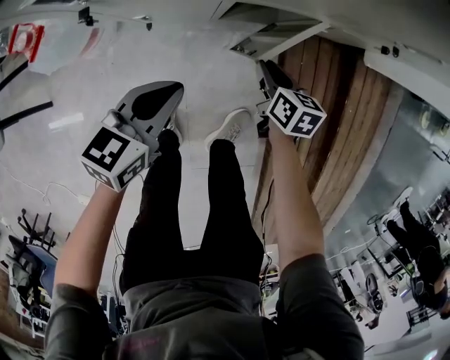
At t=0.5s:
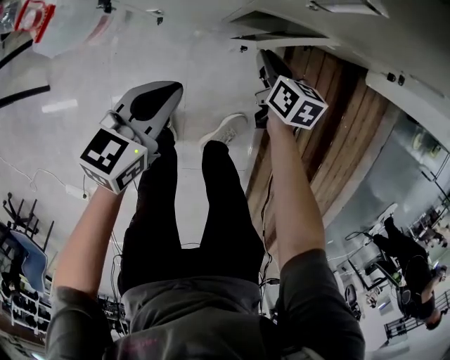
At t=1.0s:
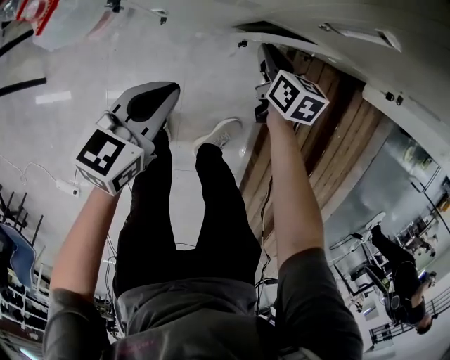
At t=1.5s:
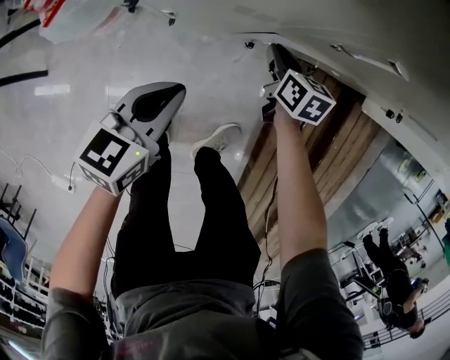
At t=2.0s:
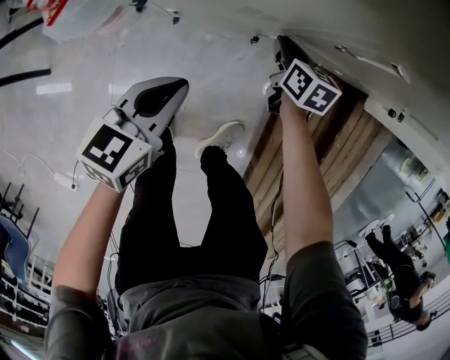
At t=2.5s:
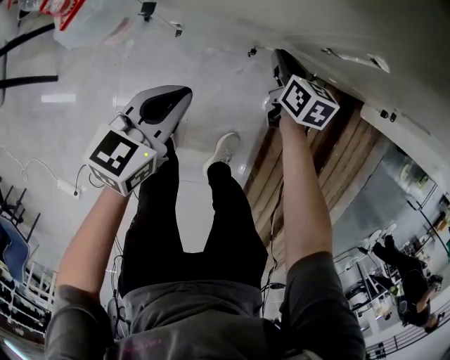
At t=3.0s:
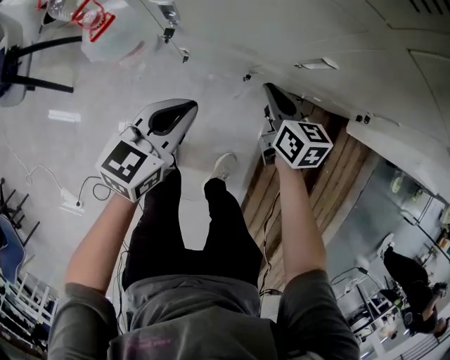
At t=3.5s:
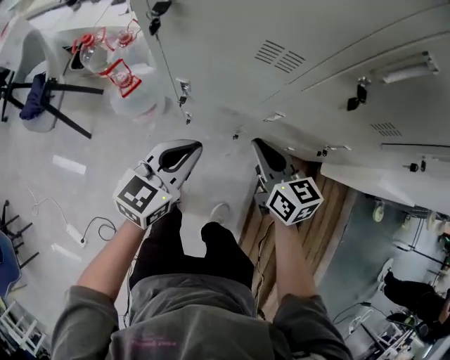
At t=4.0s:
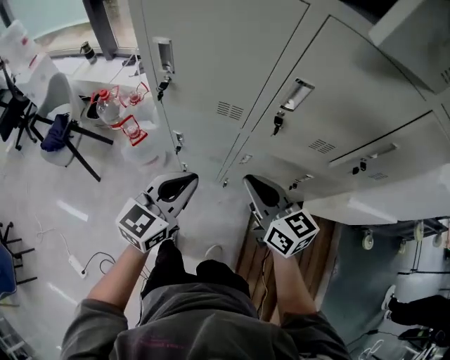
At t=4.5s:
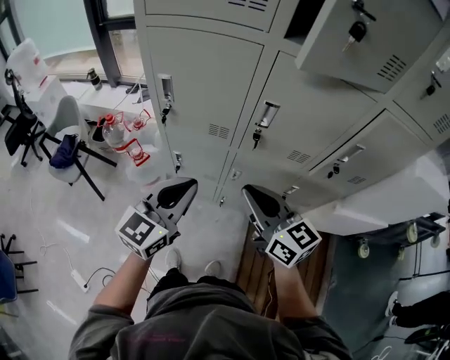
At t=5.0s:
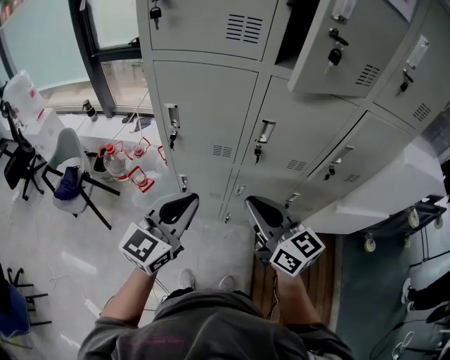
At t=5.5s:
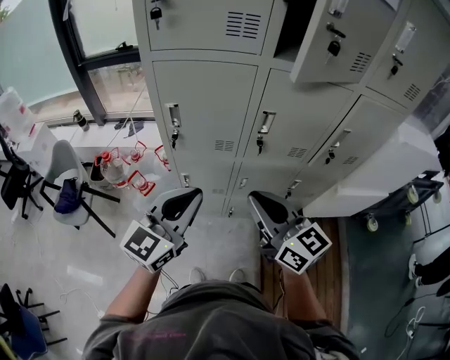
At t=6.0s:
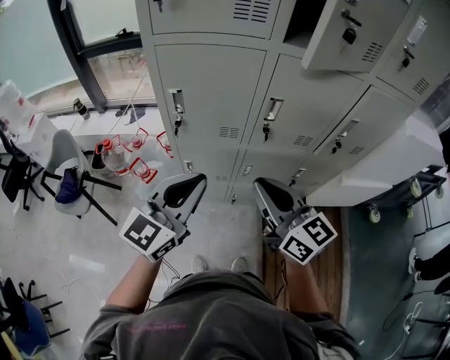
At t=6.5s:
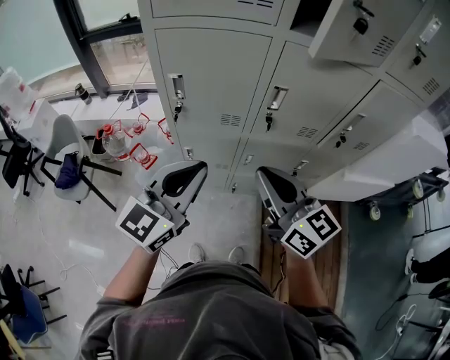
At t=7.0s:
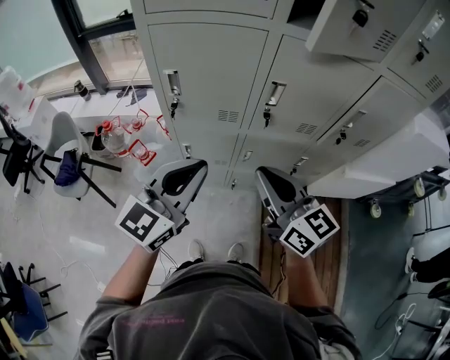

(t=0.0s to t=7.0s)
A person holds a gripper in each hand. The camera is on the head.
t=0.0s - t=2.0s: The left gripper moves to the left, some 5 cm; the right gripper moves forward and to the left, approximately 15 cm.
t=2.0s - t=3.5s: The two grippers go about 35 cm upward. The right gripper swivels about 30 degrees, while the left gripper turns by about 20 degrees.
t=3.5s - t=5.0s: Both grippers move upward, approximately 35 cm. The right gripper changes its angle by some 20 degrees. Meanwhile the left gripper changes its angle by roughly 20 degrees.
t=5.0s - t=7.0s: The grippers make only small movements.

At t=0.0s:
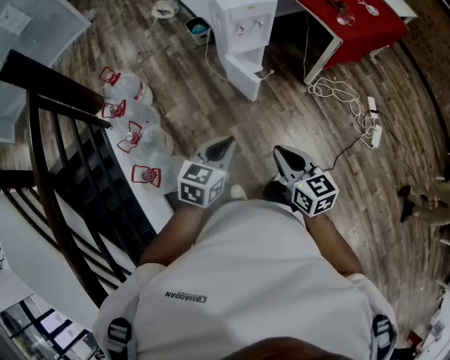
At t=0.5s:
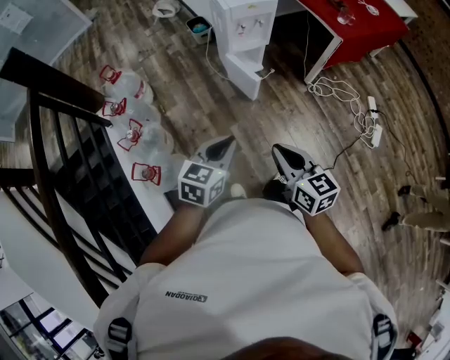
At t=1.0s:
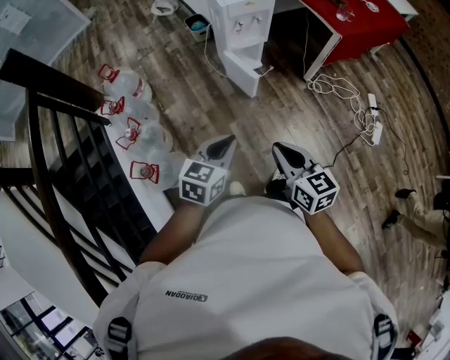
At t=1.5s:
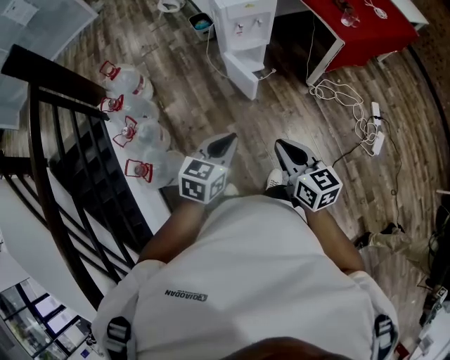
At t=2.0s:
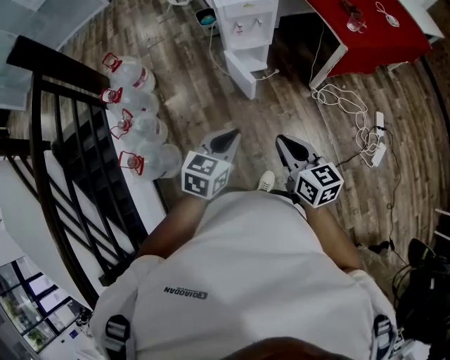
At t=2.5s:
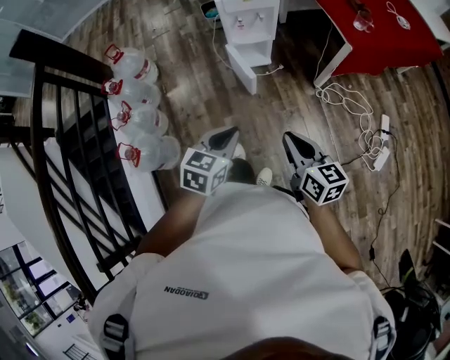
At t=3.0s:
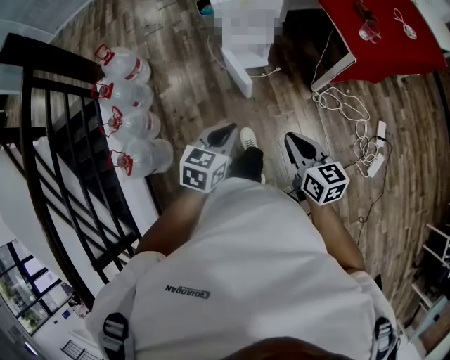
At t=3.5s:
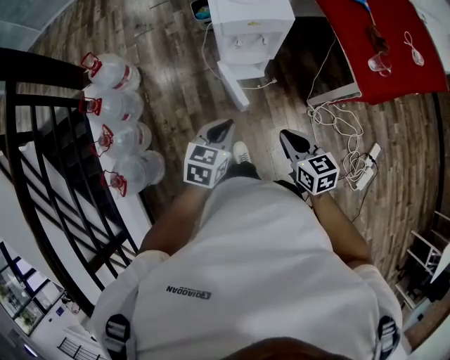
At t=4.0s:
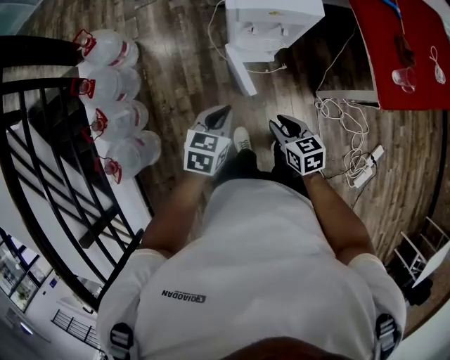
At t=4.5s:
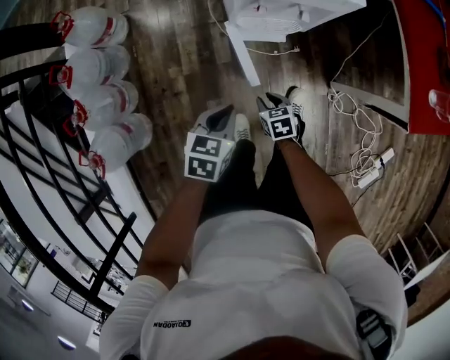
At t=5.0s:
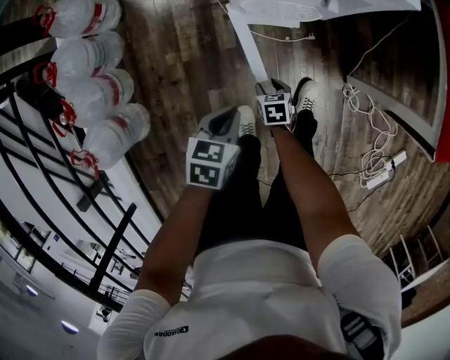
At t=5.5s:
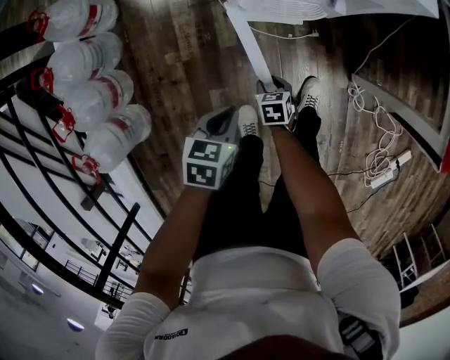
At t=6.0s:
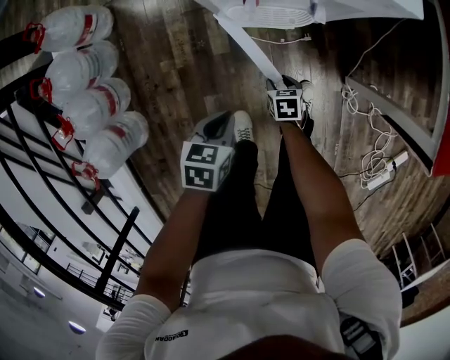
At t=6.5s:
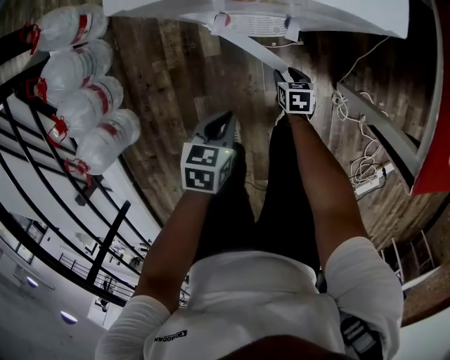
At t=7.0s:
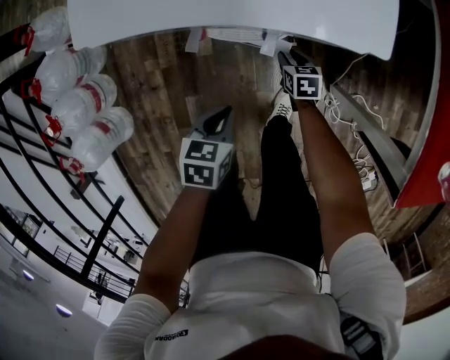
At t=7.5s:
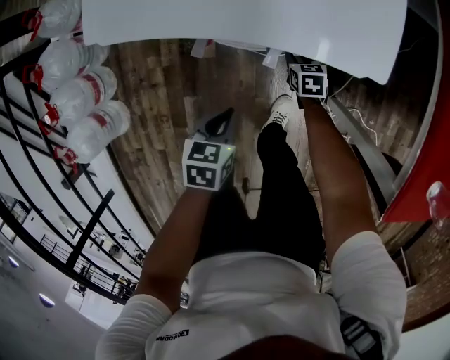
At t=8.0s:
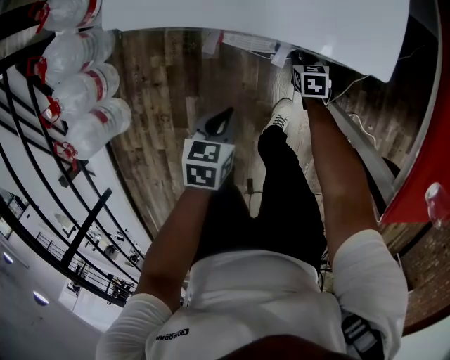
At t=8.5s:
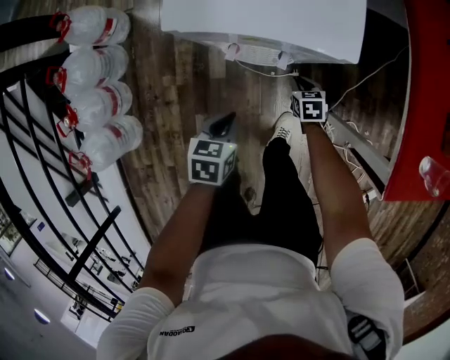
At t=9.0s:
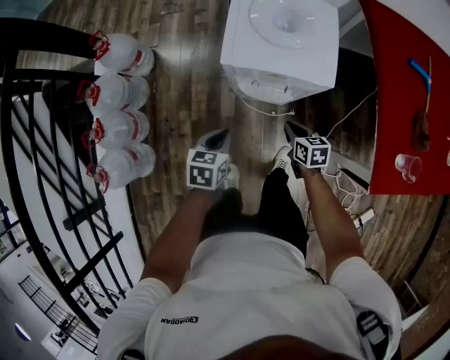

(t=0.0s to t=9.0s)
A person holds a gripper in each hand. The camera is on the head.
t=0.0s - t=2.0s: The two grippers go approximately 15 cm to the right and forward.
t=2.0s - t=4.5s: The left gripper goes roughly 40 cm forward and downward, and changes its angle by approximately 30 degrees; the right gripper is displaced downward and forward by about 60 cm, and tilts its fingers about 40 degrees downward.
t=4.5s - t=7.0s: The left gripper travels downward, to the right and forward by about 20 cm, while the right gripper moves forward, to the right and downward, about 30 cm.
t=7.0s - t=9.0s: The right gripper heads upward, covering some 25 cm, and closes its fingers. Meanwhile the left gripper moves upward and to the left, approximately 20 cm.

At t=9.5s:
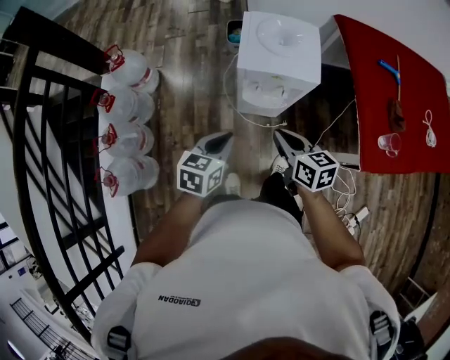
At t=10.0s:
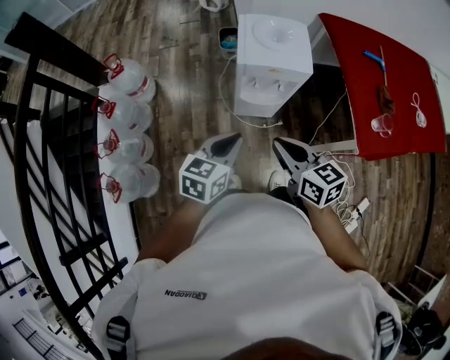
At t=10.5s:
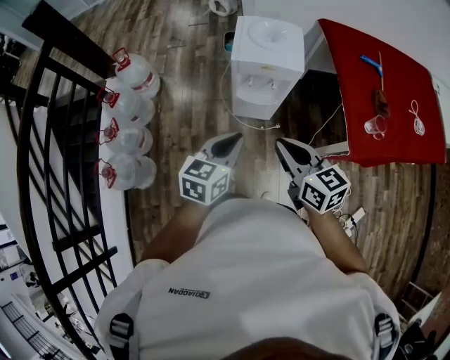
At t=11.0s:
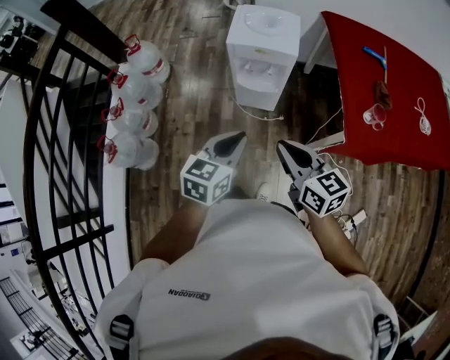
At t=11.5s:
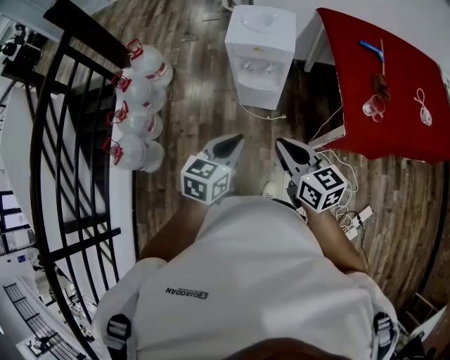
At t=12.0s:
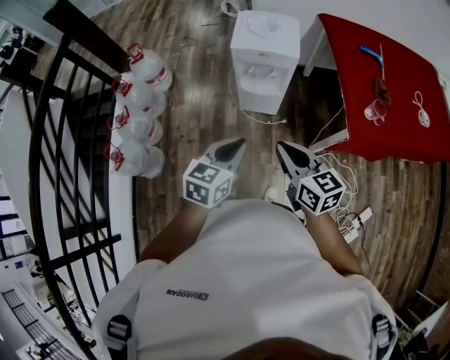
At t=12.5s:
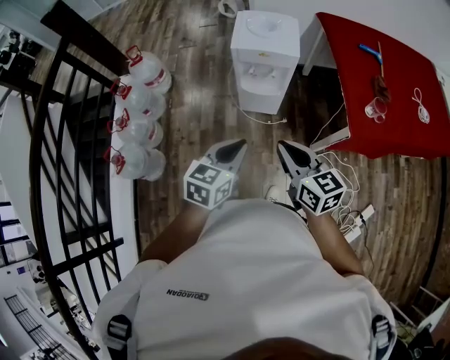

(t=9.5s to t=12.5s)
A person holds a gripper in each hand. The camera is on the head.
t=9.5s - t=11.0s: The right gripper heads backward, upward and to the right, covering about 25 cm. The left gripper shifts about 25 cm backward, to the right and upward.
t=11.0s - t=12.5s: The left gripper shifts by approximately 5 cm.

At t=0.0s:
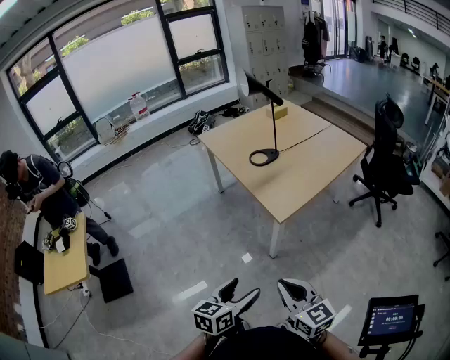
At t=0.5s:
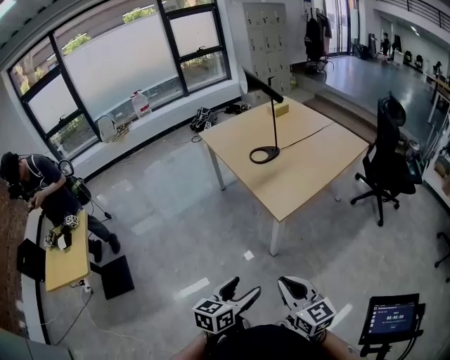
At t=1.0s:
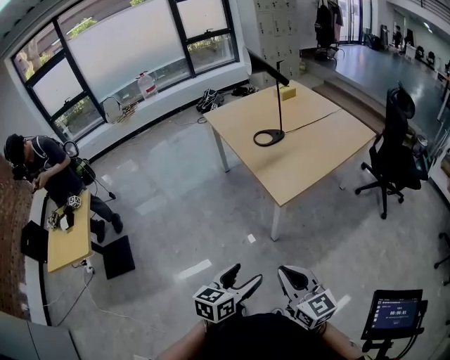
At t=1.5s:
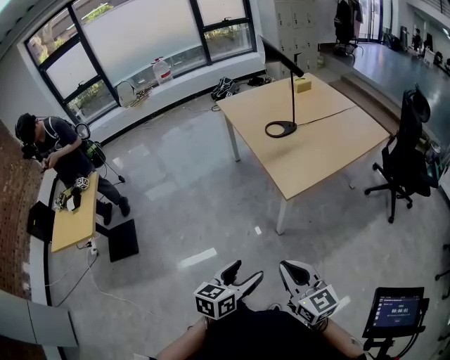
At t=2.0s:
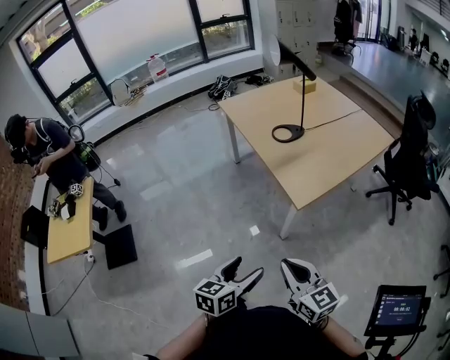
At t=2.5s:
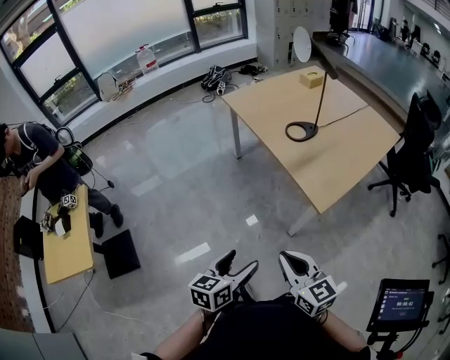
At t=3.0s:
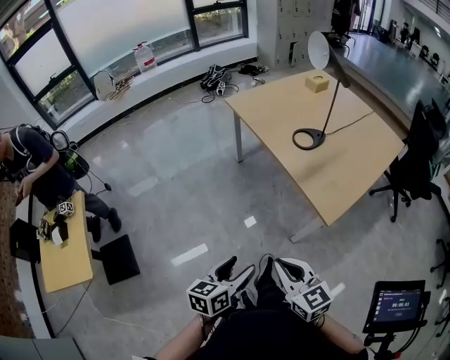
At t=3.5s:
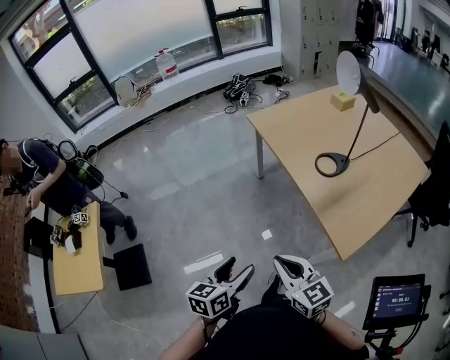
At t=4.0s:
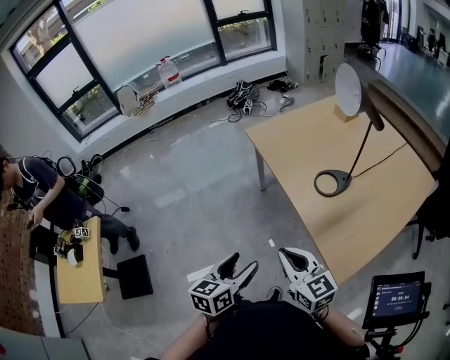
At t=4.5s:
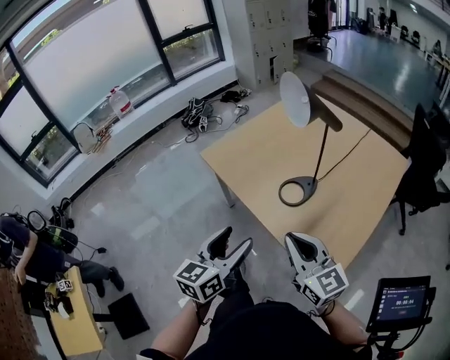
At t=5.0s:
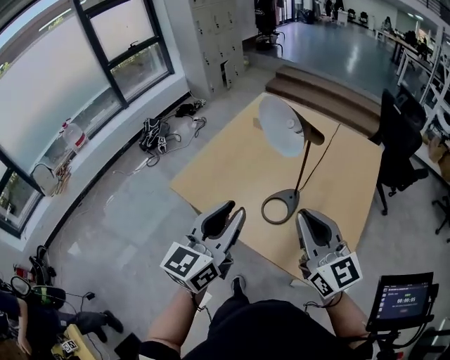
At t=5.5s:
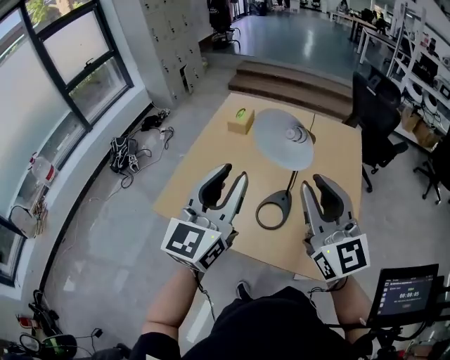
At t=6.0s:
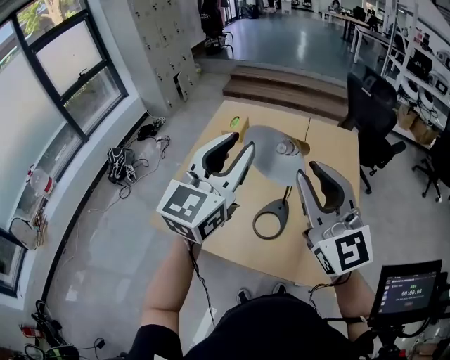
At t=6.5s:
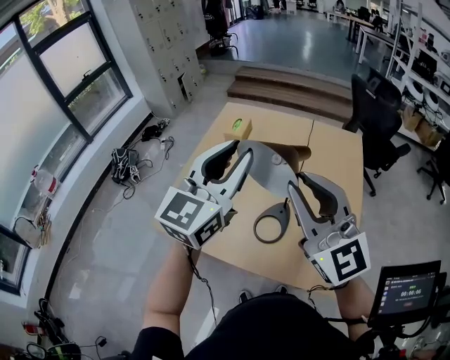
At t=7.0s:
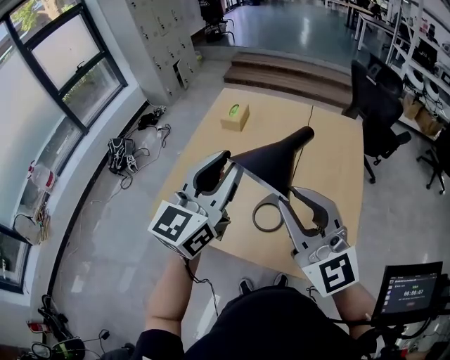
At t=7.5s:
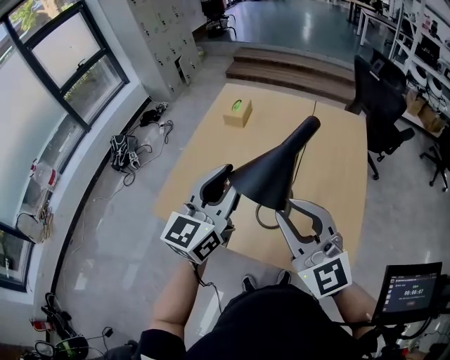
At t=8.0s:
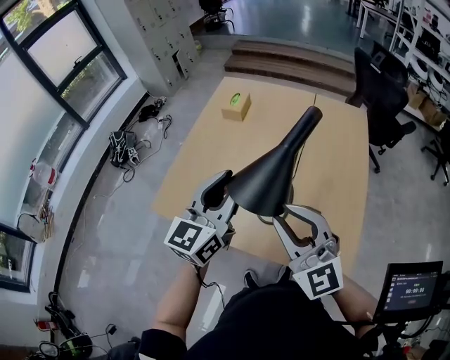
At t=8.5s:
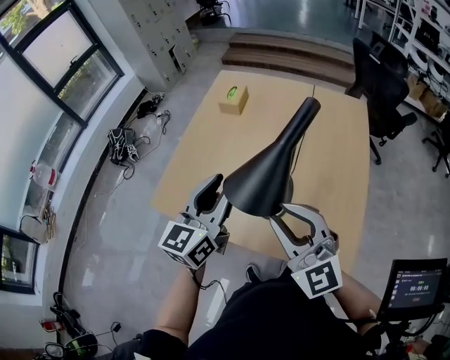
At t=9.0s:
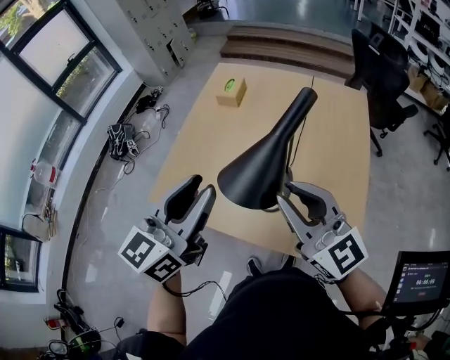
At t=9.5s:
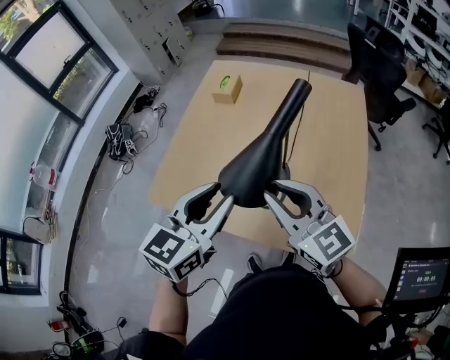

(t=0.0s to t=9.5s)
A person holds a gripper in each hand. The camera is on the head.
t=0.0s - t=2.0s: The two grippers go about 5 cm forward.
t=2.0s - t=4.0s: The left gripper moves forward and to the left, some 35 cm; the right gripper travels forward by some 35 cm.
t=4.0s - t=5.5s: The left gripper shifts by roughly 50 cm, tilts its fingers approximately 30 degrees upward, and closes. Meanwhile the right gripper ends up about 35 cm from where it was, and rotates some 60 degrees.
t=5.5s - t=7.5s: The left gripper is displaced downward and forward by some 5 cm, while the right gripper heads downward, covering about 5 cm.
t=7.5s - t=9.5s: The left gripper swings up and down, roughly 5 cm each way, with 2 reversals, and rotates roughly 20 degrees. The right gripper moves downward, roughly 5 cm, and rotates about 20 degrees.
